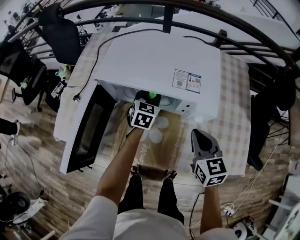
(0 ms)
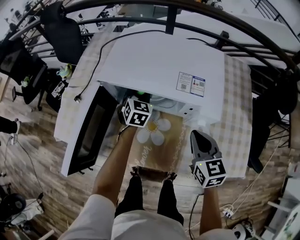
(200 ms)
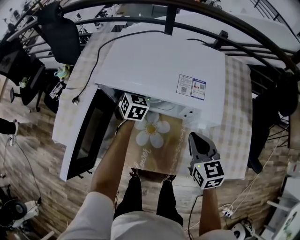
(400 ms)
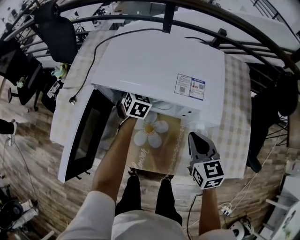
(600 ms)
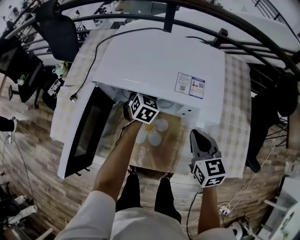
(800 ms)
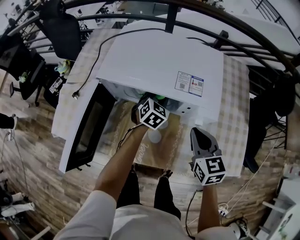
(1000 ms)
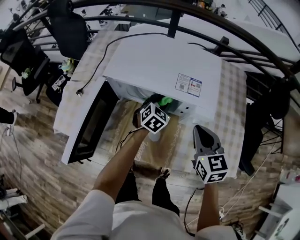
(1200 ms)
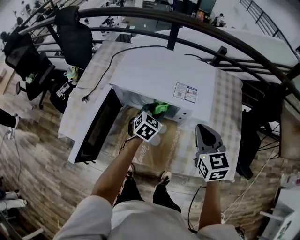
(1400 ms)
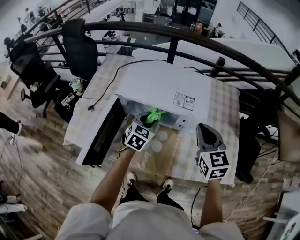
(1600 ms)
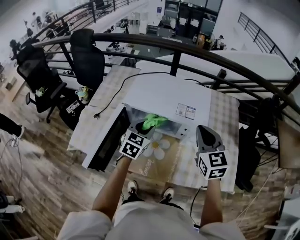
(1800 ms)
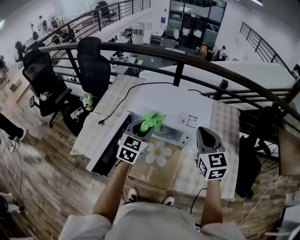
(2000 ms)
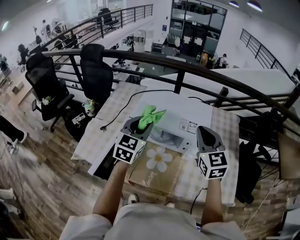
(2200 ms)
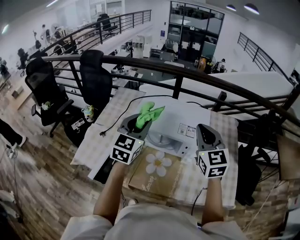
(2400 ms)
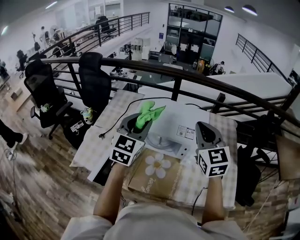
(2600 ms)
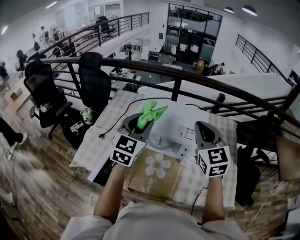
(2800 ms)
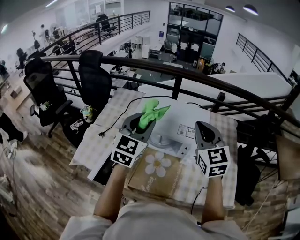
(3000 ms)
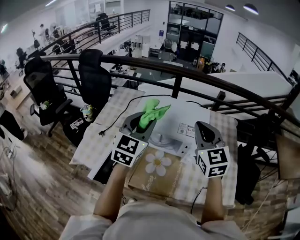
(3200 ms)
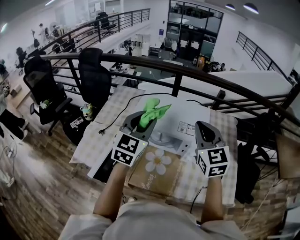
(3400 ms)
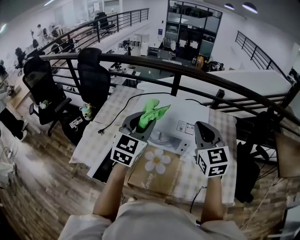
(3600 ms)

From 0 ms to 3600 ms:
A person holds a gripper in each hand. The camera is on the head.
From 0 ms to 1800 ms: The right gripper travels upward by approximately 20 cm. The left gripper goes roughly 20 cm upward and backward.
From 1800 ms to 3600 ms: The left gripper is displaced upward by about 20 cm, and changes its angle by some 20 degrees, while the right gripper heads upward, covering approximately 10 cm.

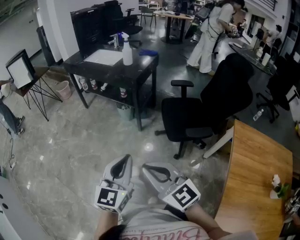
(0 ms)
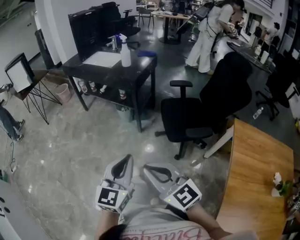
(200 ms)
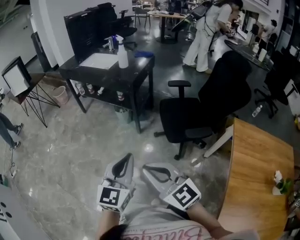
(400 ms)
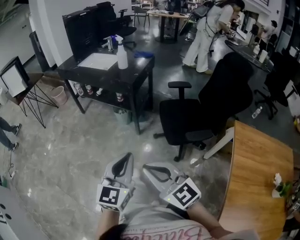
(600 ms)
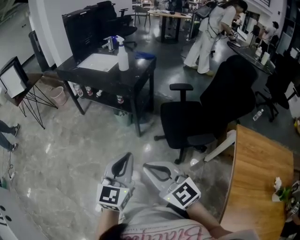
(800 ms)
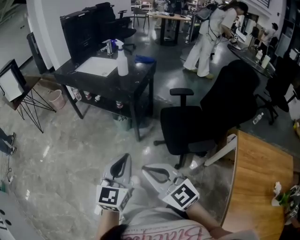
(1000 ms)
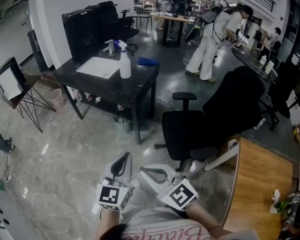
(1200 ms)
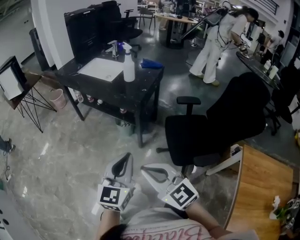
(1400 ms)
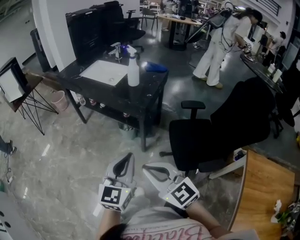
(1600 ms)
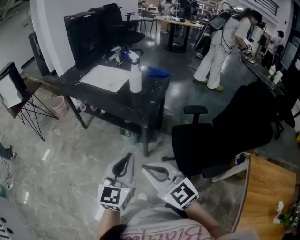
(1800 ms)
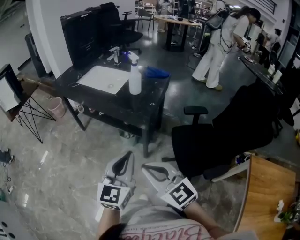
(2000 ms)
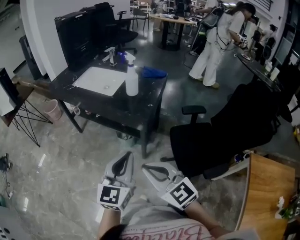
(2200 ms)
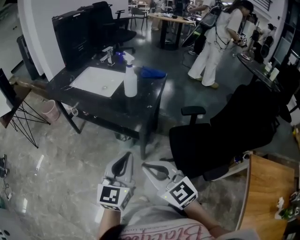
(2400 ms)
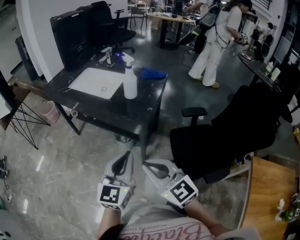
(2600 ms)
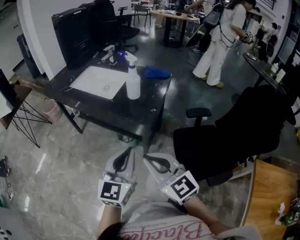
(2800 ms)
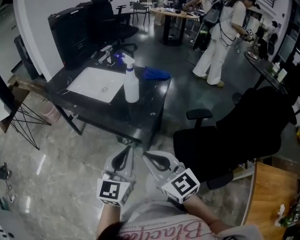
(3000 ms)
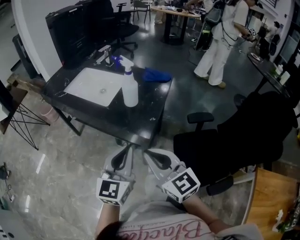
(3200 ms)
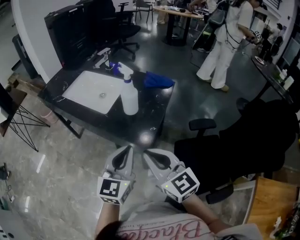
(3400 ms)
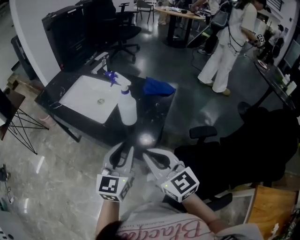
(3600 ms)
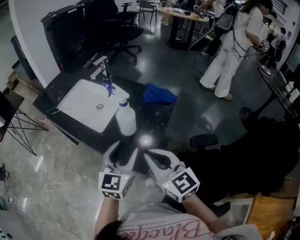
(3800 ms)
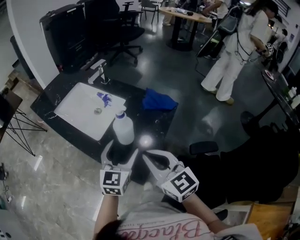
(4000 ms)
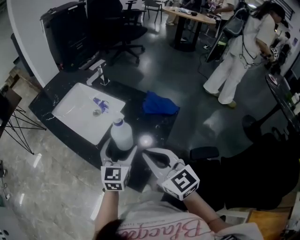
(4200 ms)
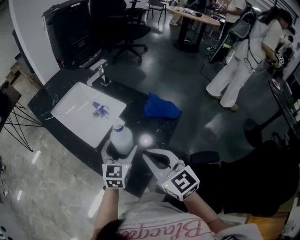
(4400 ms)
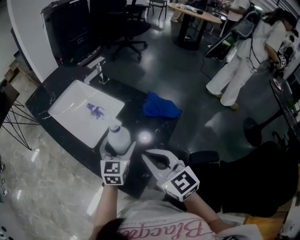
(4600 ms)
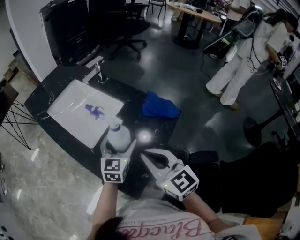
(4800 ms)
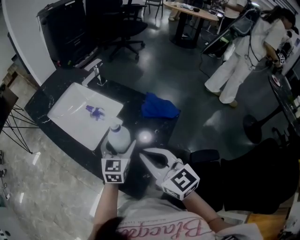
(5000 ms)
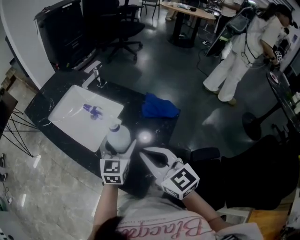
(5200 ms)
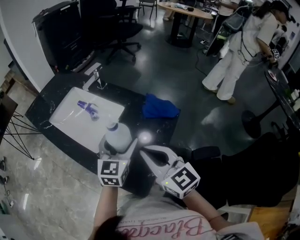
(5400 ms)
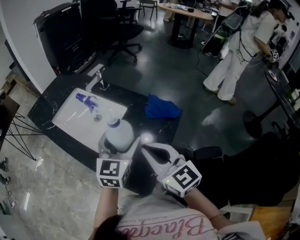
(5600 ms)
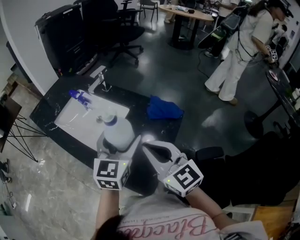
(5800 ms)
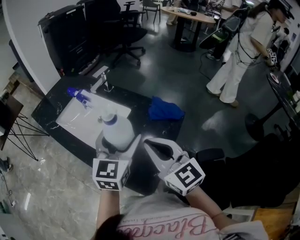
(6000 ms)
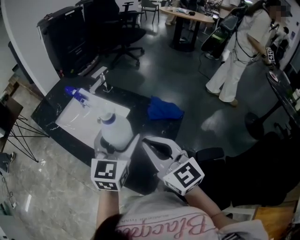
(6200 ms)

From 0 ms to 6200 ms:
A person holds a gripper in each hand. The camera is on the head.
From 0 ms to 1600 ms: The grippers both shift forward by about 25 cm.
From 1600 ms to 3200 ms: The two grippers go roughly 25 cm forward.
From 3200 ms to 4600 ms: The two grippers go roughly 25 cm forward. The left gripper opens up.
From 4600 ms to 6200 ms: The left gripper travels upward by about 15 cm. The right gripper is displaced upward by approximately 10 cm.

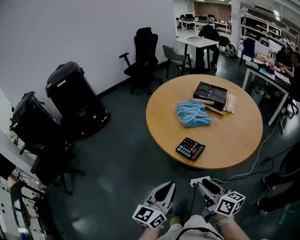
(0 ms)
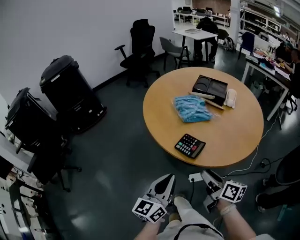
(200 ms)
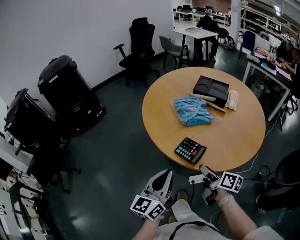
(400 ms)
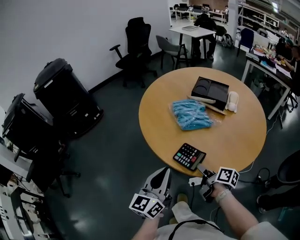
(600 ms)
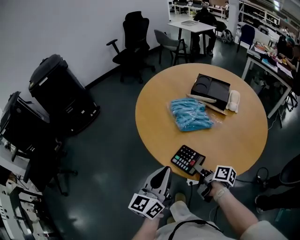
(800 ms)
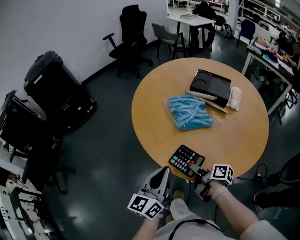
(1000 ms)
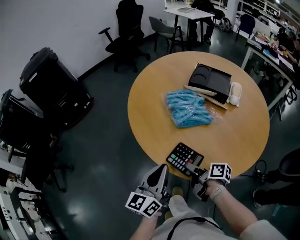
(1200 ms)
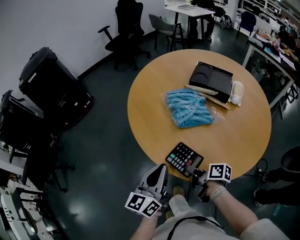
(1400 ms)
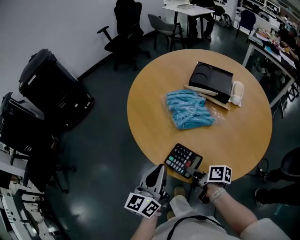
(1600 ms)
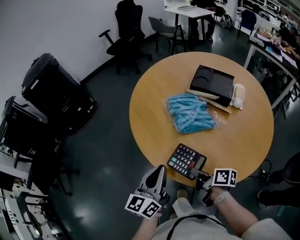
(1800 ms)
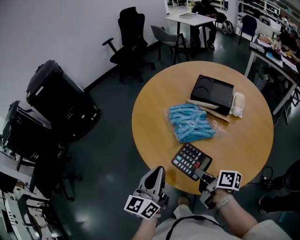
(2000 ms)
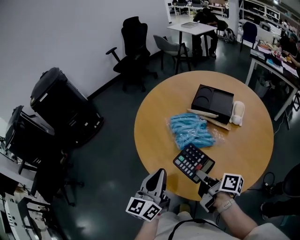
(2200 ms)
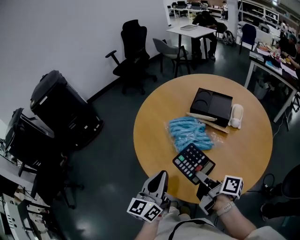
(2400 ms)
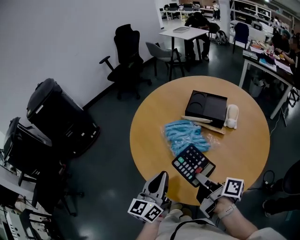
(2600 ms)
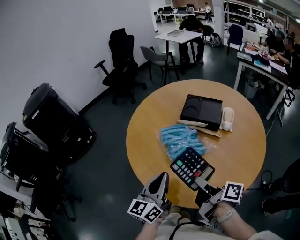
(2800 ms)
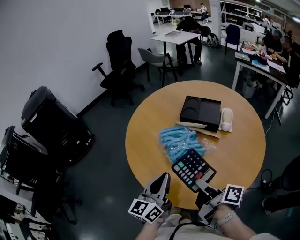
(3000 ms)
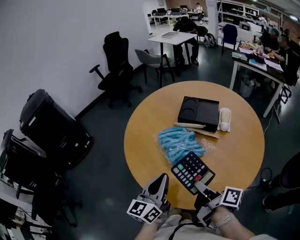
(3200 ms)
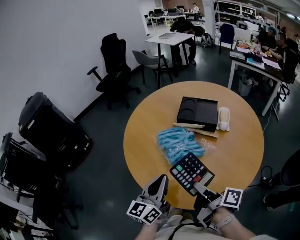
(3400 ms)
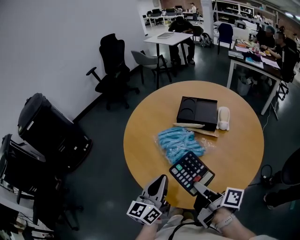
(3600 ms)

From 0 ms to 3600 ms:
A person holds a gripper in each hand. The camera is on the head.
From 0 ms to 1800 ms: The left gripper changes place by approximately 25 cm.
From 1800 ms to 3600 ms: The left gripper changes place by roughly 10 cm.

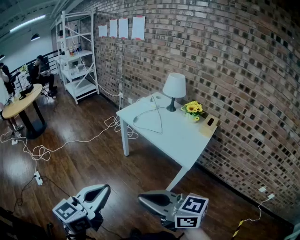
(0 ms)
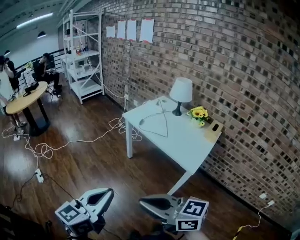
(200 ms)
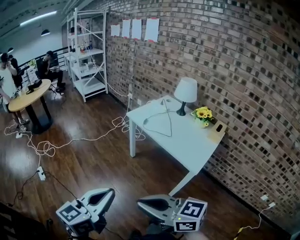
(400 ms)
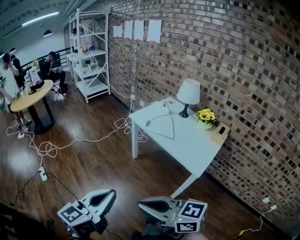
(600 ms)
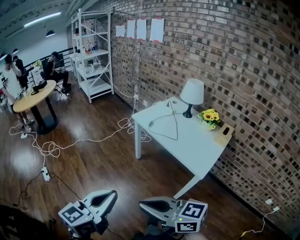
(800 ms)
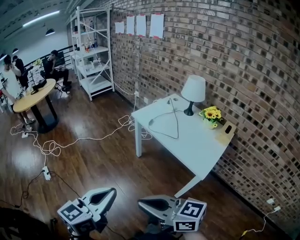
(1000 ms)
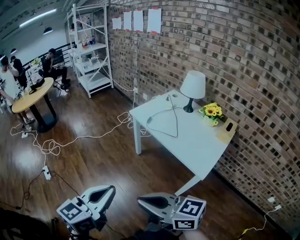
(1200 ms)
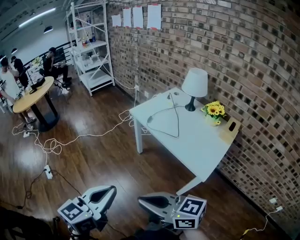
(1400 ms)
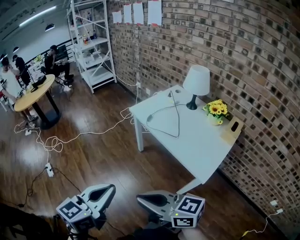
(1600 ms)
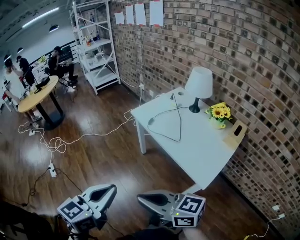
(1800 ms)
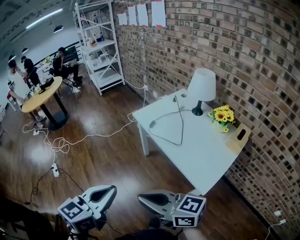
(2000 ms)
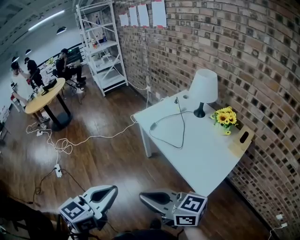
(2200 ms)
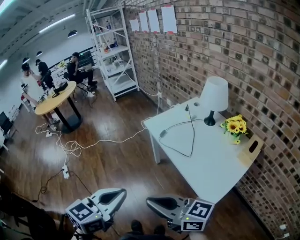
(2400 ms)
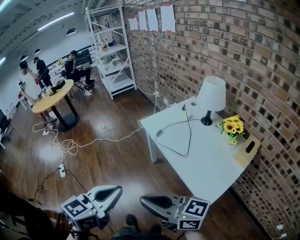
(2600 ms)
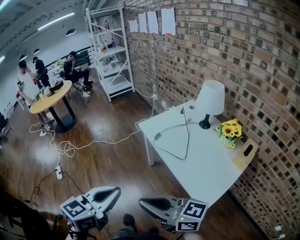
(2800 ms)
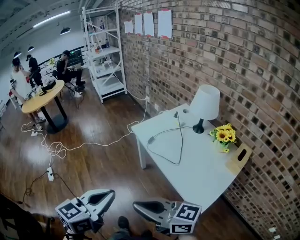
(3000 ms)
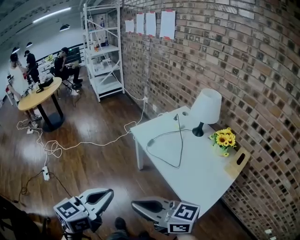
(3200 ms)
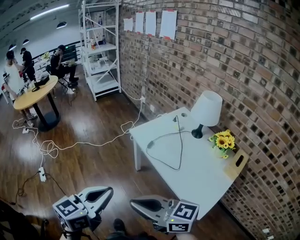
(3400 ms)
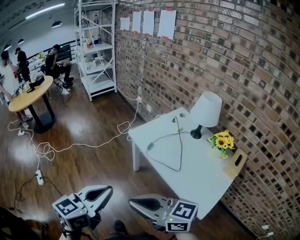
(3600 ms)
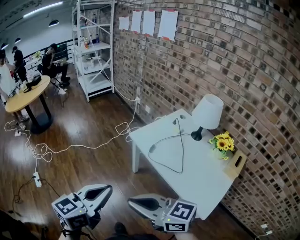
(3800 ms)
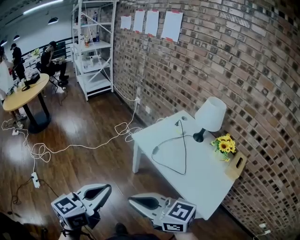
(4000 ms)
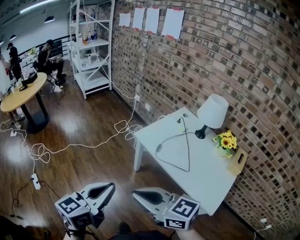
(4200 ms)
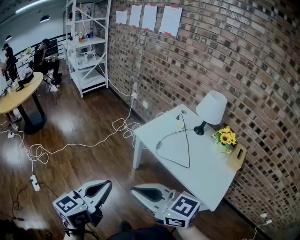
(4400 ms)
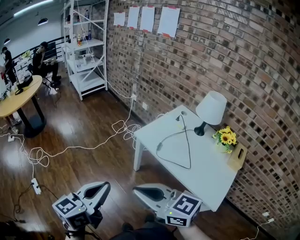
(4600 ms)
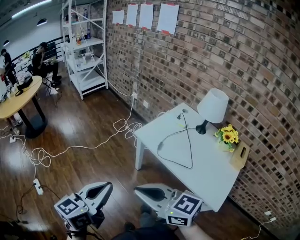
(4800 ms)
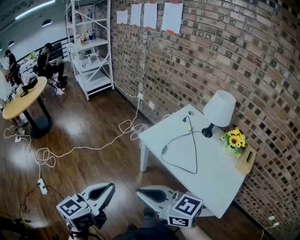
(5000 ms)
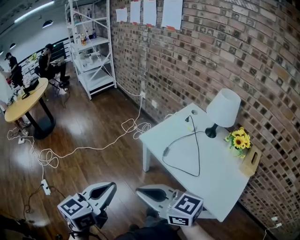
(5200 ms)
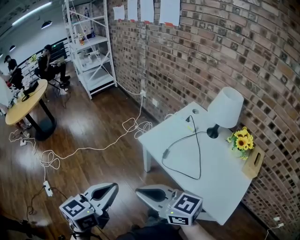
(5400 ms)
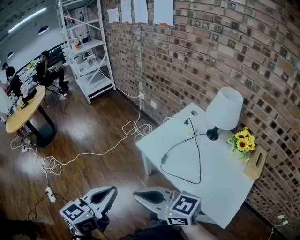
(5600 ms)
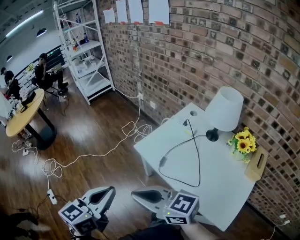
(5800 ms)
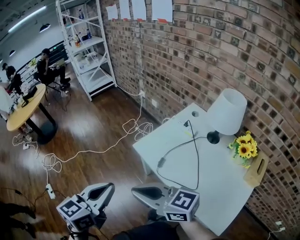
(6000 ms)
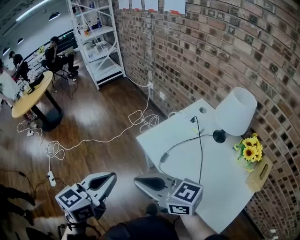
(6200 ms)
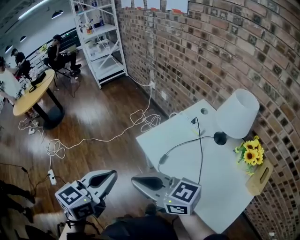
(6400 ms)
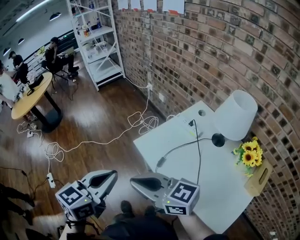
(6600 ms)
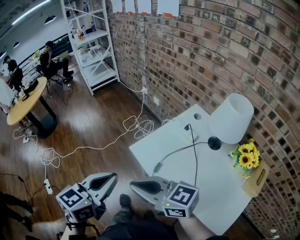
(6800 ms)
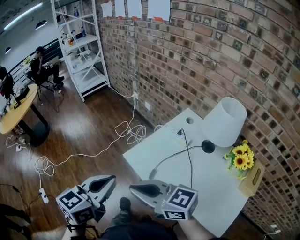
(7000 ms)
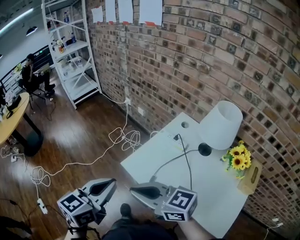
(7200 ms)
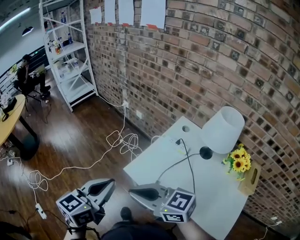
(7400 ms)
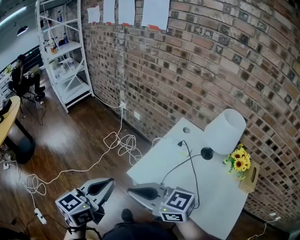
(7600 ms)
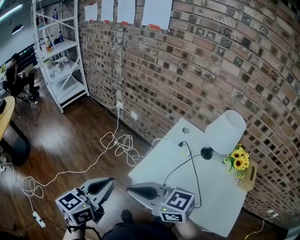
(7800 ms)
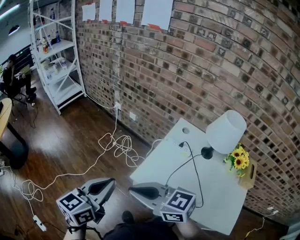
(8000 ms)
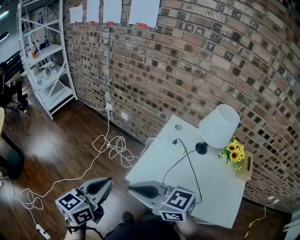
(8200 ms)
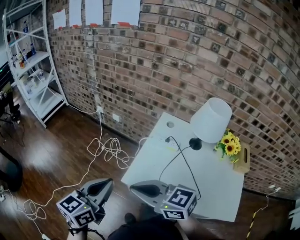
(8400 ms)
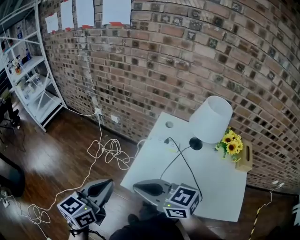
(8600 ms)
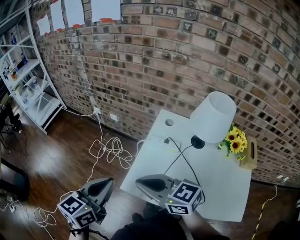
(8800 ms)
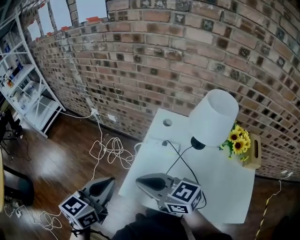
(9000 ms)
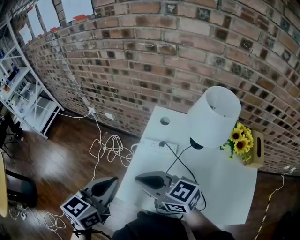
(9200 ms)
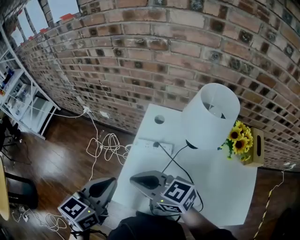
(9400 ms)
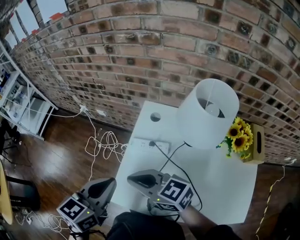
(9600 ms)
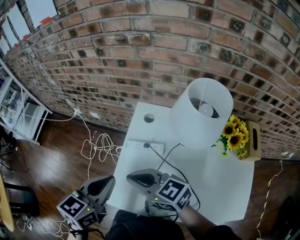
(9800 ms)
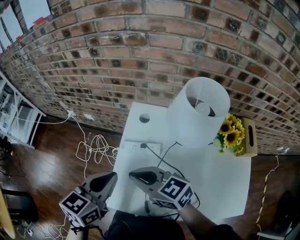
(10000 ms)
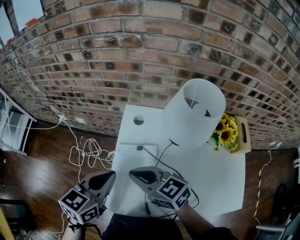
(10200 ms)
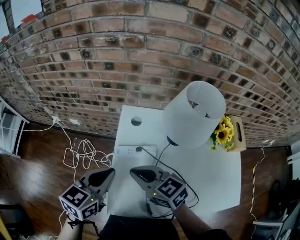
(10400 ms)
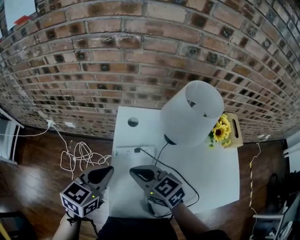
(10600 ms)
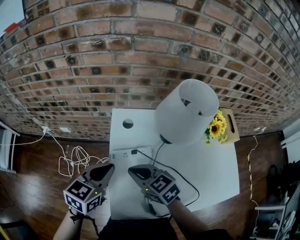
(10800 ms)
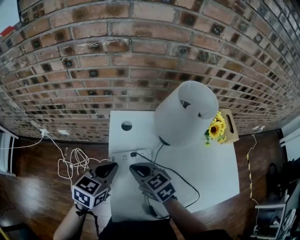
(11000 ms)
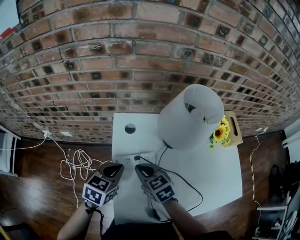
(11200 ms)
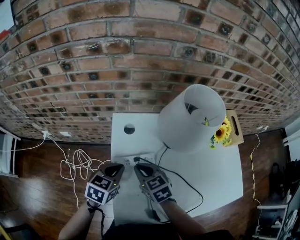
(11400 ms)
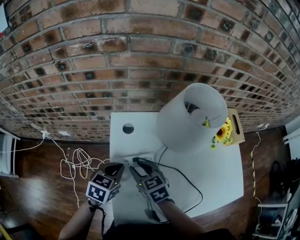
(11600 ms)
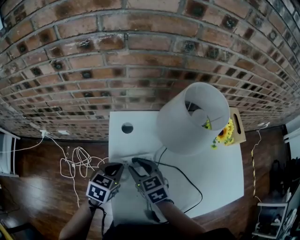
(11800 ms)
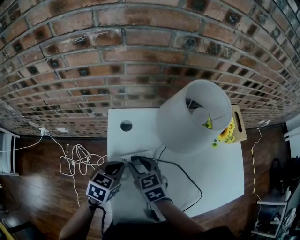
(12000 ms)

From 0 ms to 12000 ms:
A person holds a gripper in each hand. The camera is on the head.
From 0 ms to 1600 ms: Both grippers move forward, some 10 cm.
From 1600 ms to 3000 ms: The grippers both shift forward and to the right by roughly 10 cm.
From 3000 ms to 4400 ms: Both grippers move forward and to the left, about 20 cm. The right gripper turns by about 20 degrees.
From 4400 ms to 6000 ms: The two grippers go roughly 20 cm forward and to the right.
From 6000 ms to 7600 ms: Both grippers travel together forward, approximately 20 cm.
From 7600 ms to 9000 ms: The two grippers go about 20 cm forward and to the right. The right gripper rotates roughly 20 degrees.
From 9000 ms to 10400 ms: The right gripper moves forward, downward and to the right, about 15 cm, and rotates approximately 20 degrees. The left gripper travels forward, to the right and downward by some 20 cm, and rotates some 30 degrees.
From 10400 ms to 12000 ms: The two grippers go approximately 15 cm downward and forward. The right gripper rotates approximately 30 degrees, and opens its fingers. Meanwhile the left gripper changes its angle by some 20 degrees.
